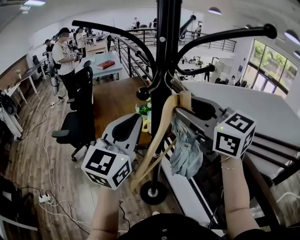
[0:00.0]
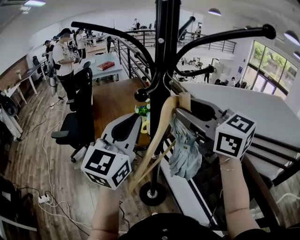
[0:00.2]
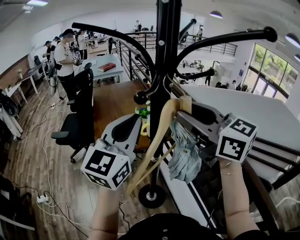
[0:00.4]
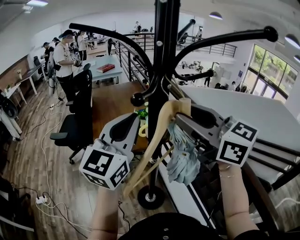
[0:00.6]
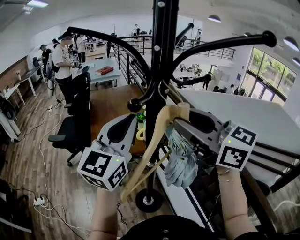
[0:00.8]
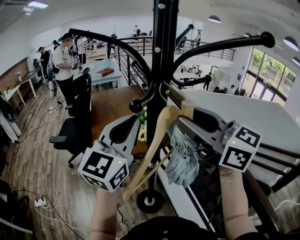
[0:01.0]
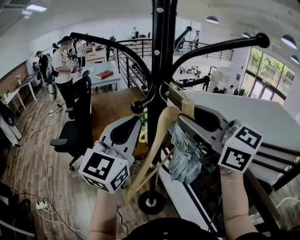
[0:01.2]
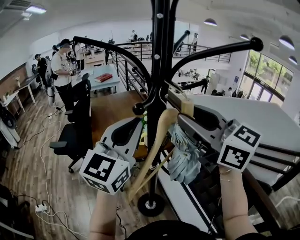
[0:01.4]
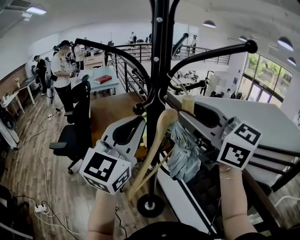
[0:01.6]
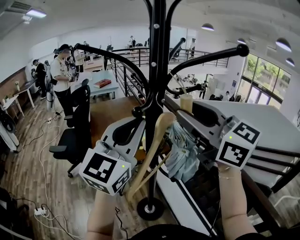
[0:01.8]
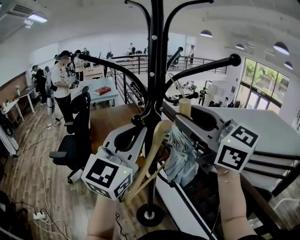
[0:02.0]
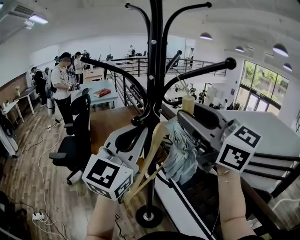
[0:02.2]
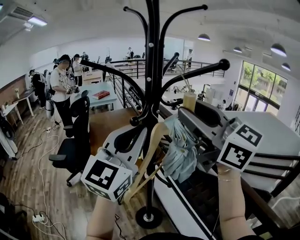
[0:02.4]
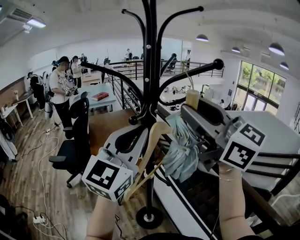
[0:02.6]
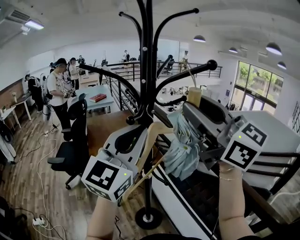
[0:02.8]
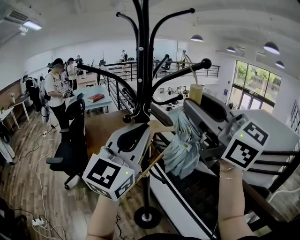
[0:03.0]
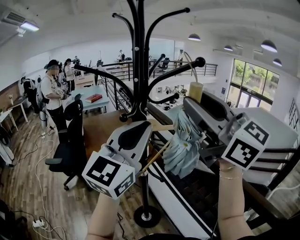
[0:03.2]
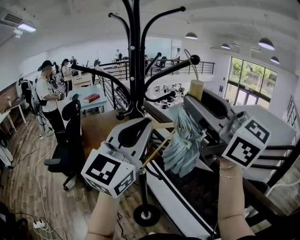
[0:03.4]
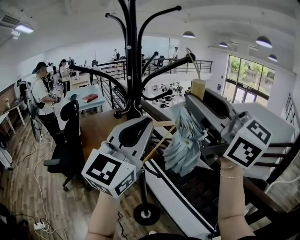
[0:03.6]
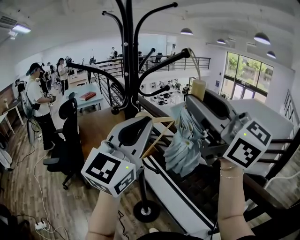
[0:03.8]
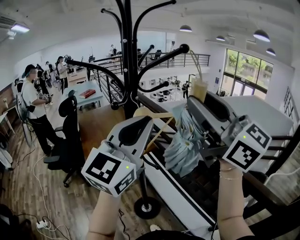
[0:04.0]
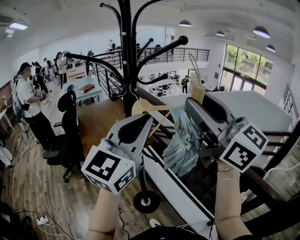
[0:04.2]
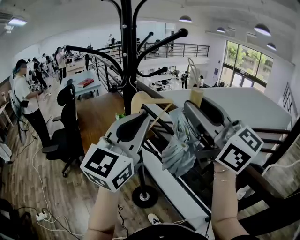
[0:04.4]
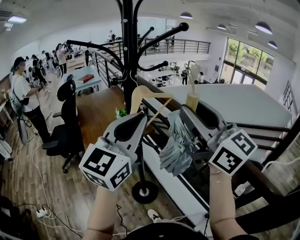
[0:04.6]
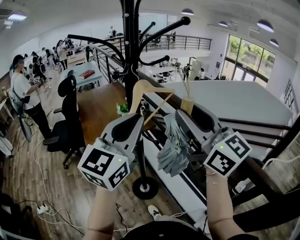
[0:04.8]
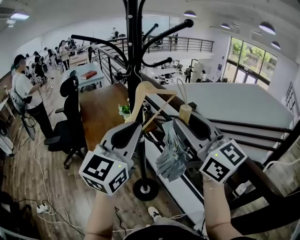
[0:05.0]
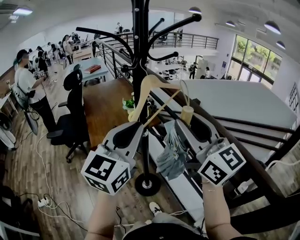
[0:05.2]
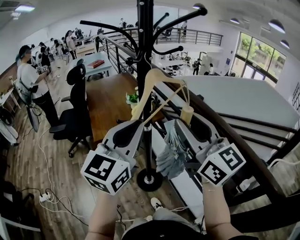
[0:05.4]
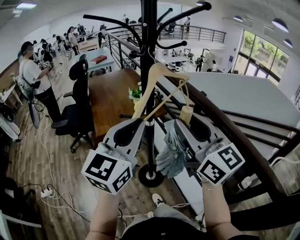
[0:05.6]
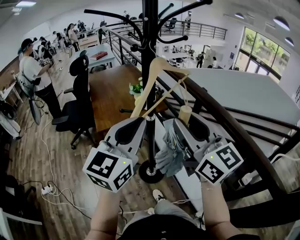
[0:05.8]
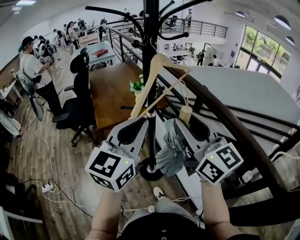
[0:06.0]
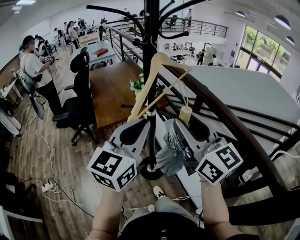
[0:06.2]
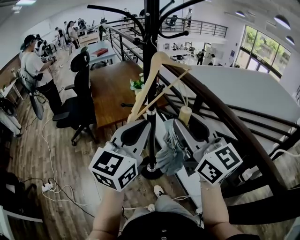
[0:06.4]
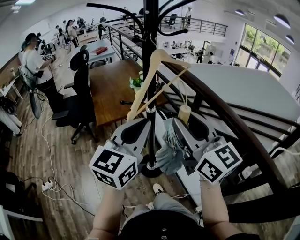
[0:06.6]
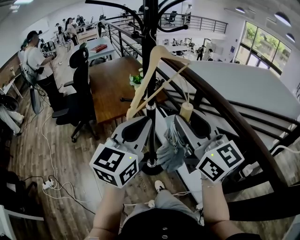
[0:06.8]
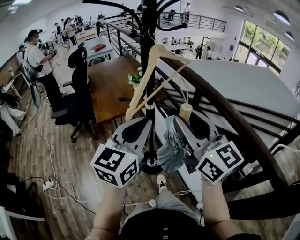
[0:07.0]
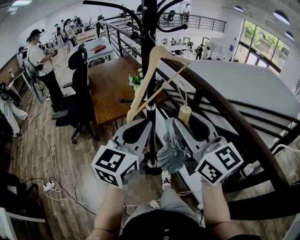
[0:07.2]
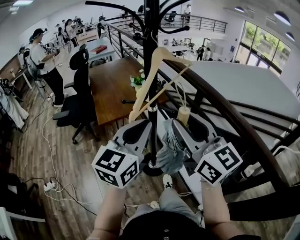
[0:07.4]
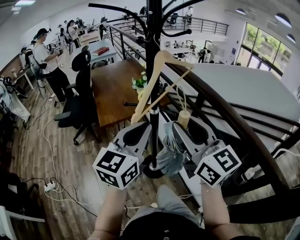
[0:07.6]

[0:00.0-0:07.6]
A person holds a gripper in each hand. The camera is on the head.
0:00.0 to 0:01.6: The right gripper shifts about 5 cm upward; the left gripper moves approximately 5 cm.
0:01.6 to 0:03.0: The left gripper travels backward by some 5 cm. The right gripper heads upward and backward, covering approximately 10 cm.
0:03.0 to 0:04.6: The right gripper moves downward and backward, roughly 10 cm; the left gripper shifts some 10 cm backward and downward.
0:04.6 to 0:06.0: The left gripper moves downward, approximately 10 cm. The right gripper moves downward and to the left, roughly 15 cm.
0:06.0 to 0:07.6: The grippers make only small movements.

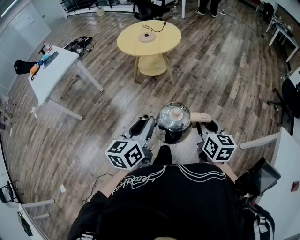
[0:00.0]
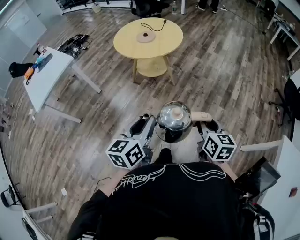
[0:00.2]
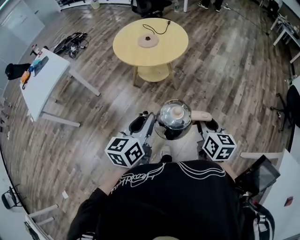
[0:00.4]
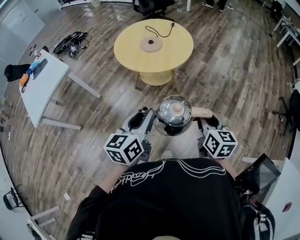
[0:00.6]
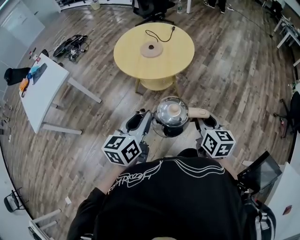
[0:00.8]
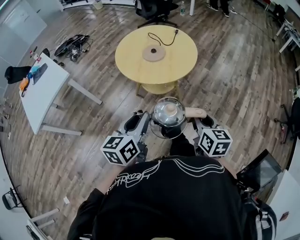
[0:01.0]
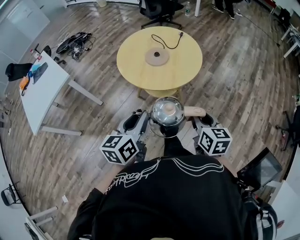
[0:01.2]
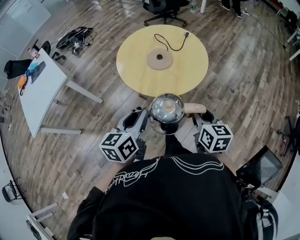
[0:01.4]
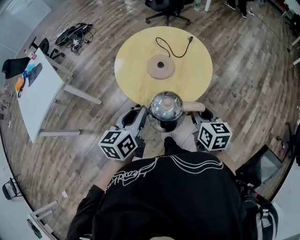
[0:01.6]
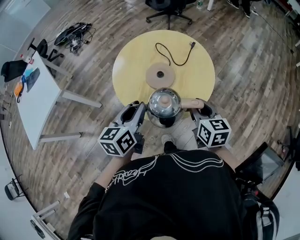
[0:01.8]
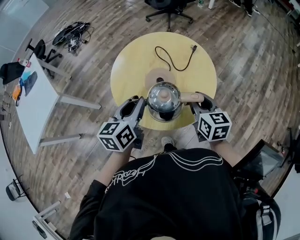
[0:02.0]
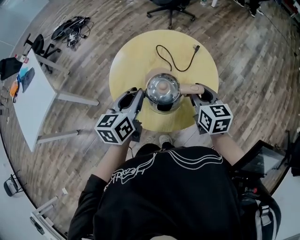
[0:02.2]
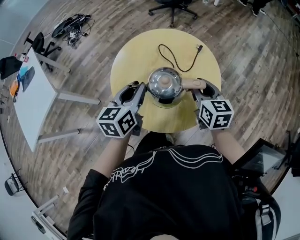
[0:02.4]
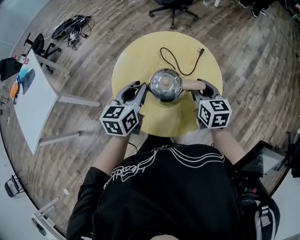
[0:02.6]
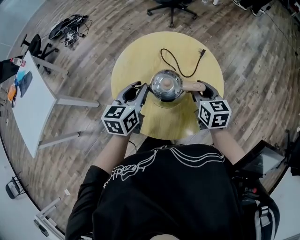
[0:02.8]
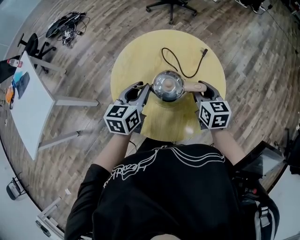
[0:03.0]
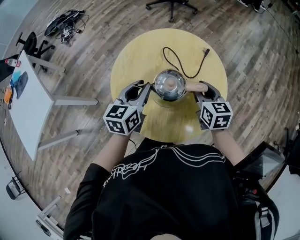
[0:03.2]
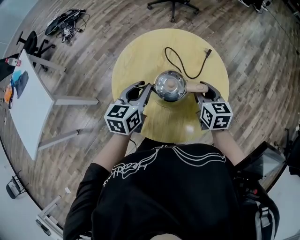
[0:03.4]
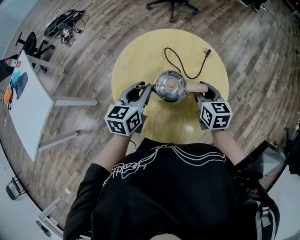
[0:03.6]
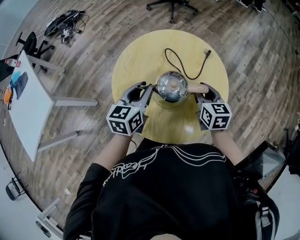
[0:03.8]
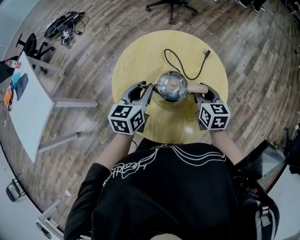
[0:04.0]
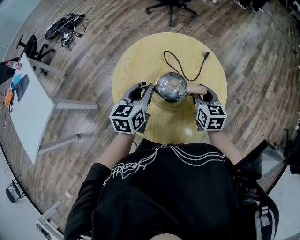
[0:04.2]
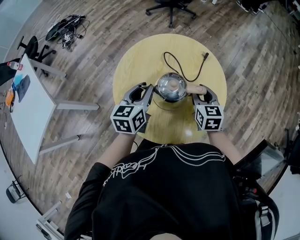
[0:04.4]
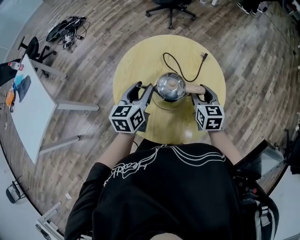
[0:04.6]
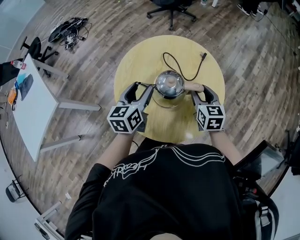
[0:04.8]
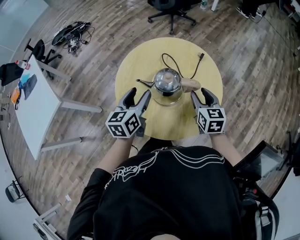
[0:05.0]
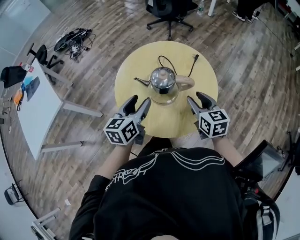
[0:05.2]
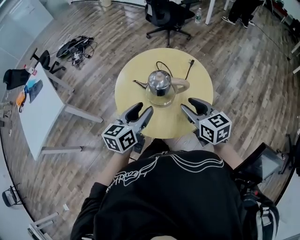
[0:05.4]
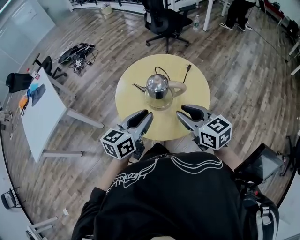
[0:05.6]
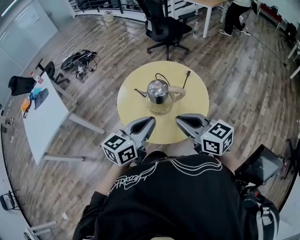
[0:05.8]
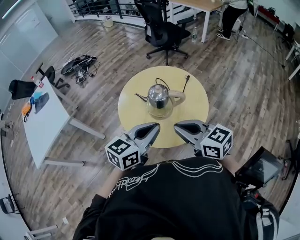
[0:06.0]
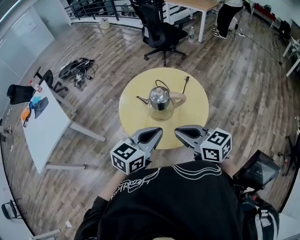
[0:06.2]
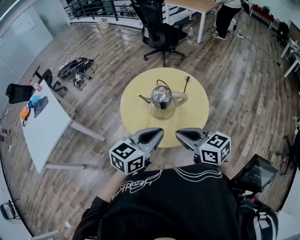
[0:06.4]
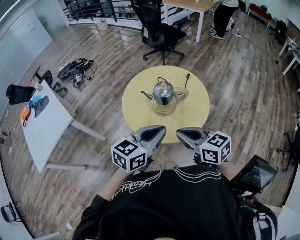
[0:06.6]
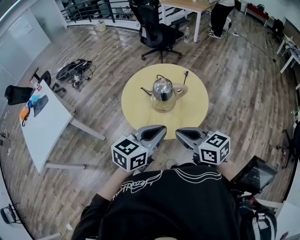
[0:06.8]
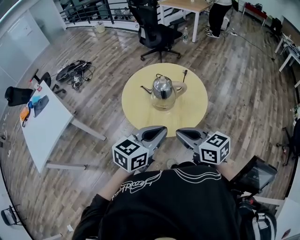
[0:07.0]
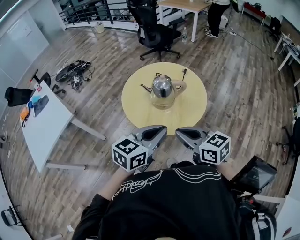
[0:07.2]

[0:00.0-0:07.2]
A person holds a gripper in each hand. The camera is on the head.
0:00.0 to 0:01.4: The pair of grippers is taken forward, about 50 cm.
0:01.4 to 0:02.8: Both grippers move forward, about 35 cm.
0:02.8 to 0:04.4: The grippers make only small movements.
0:04.4 to 0:05.8: The grippers both shift backward and upward by some 25 cm. The right gripper changes its angle by some 40 degrees, and closes its fingers; the left gripper turns by about 20 degrees, and opens and closes again.
0:05.8 to 0:07.2: Both grippers move backward, about 10 cm.

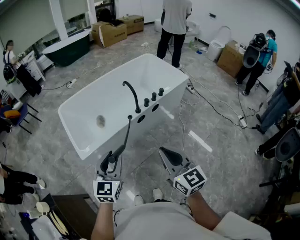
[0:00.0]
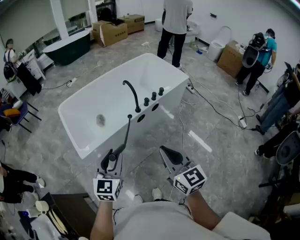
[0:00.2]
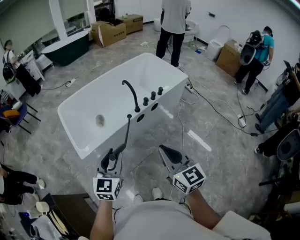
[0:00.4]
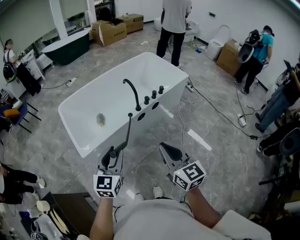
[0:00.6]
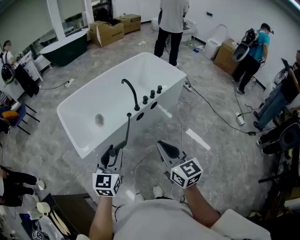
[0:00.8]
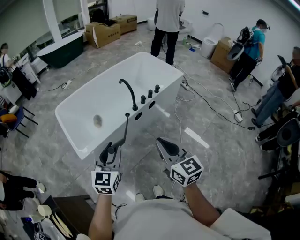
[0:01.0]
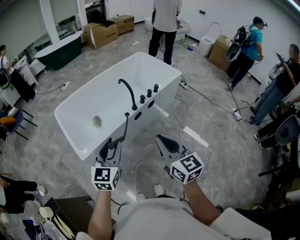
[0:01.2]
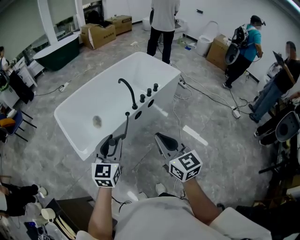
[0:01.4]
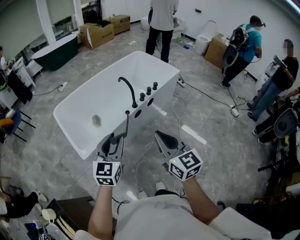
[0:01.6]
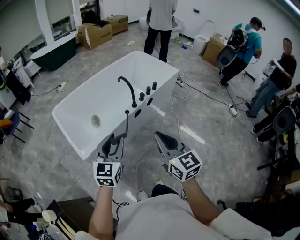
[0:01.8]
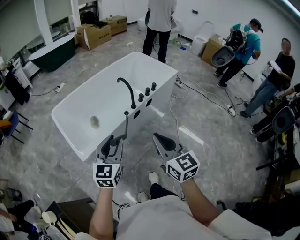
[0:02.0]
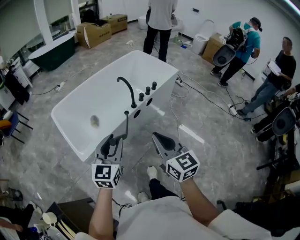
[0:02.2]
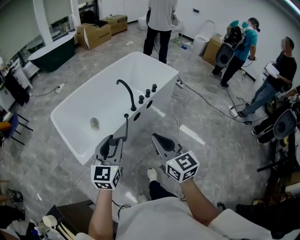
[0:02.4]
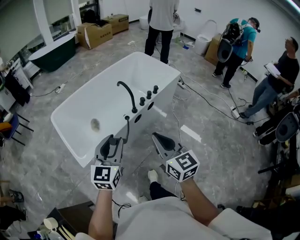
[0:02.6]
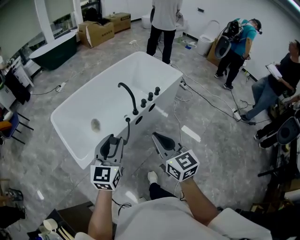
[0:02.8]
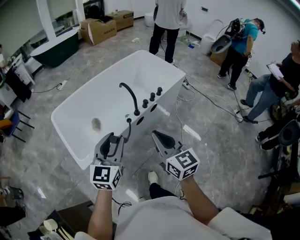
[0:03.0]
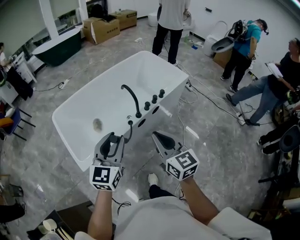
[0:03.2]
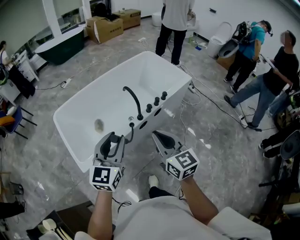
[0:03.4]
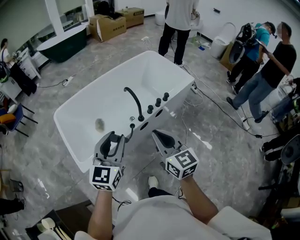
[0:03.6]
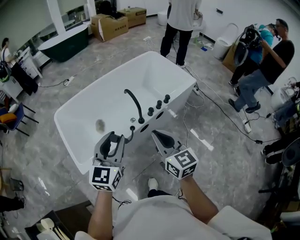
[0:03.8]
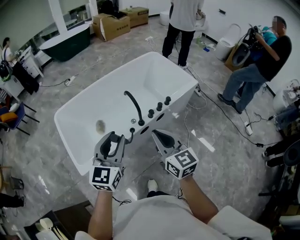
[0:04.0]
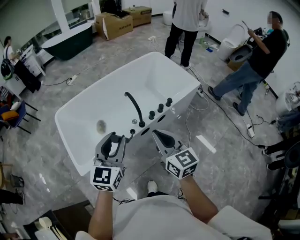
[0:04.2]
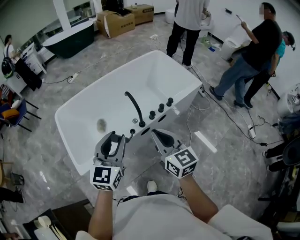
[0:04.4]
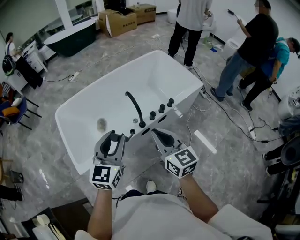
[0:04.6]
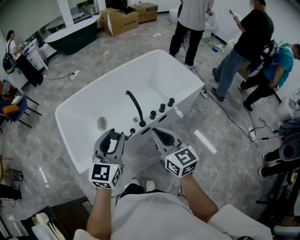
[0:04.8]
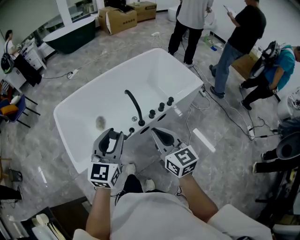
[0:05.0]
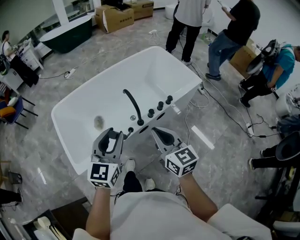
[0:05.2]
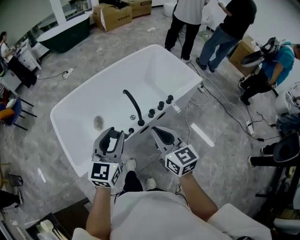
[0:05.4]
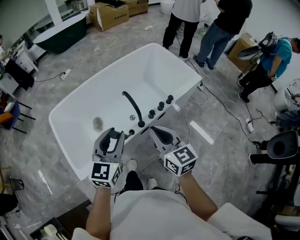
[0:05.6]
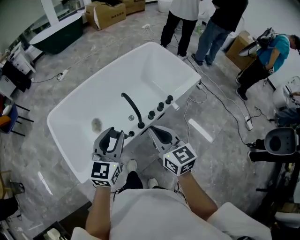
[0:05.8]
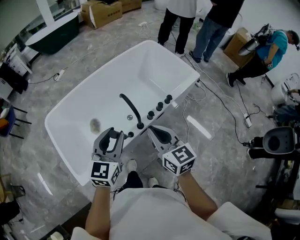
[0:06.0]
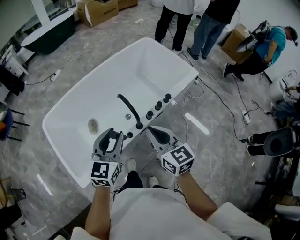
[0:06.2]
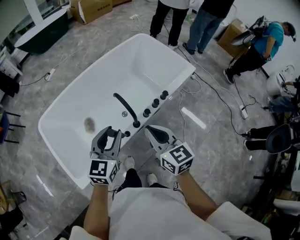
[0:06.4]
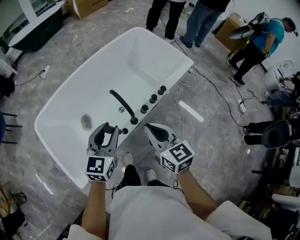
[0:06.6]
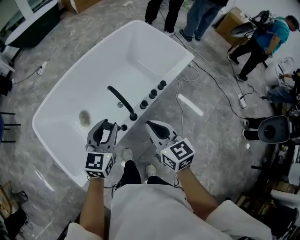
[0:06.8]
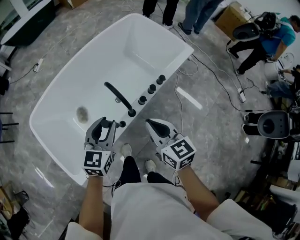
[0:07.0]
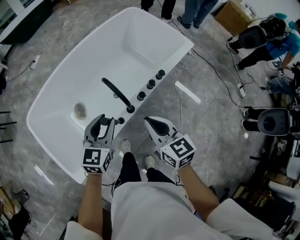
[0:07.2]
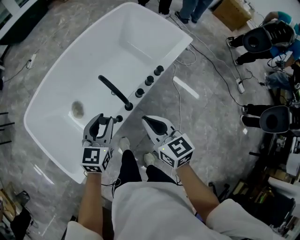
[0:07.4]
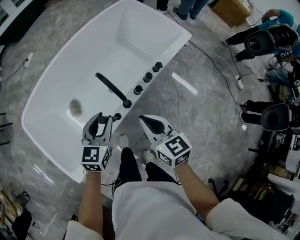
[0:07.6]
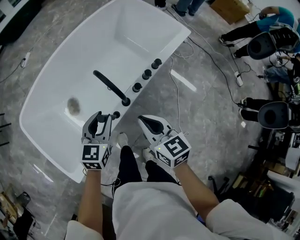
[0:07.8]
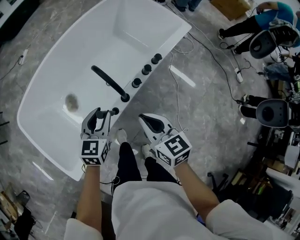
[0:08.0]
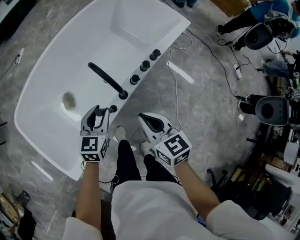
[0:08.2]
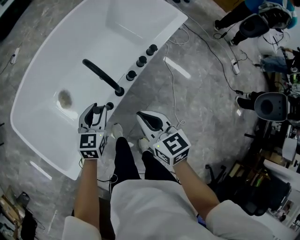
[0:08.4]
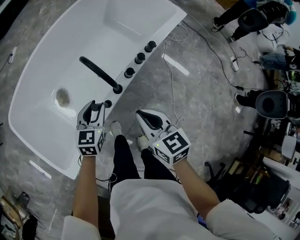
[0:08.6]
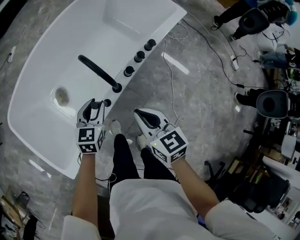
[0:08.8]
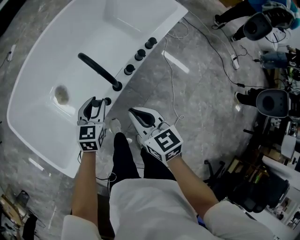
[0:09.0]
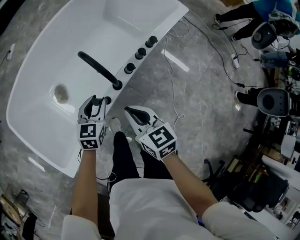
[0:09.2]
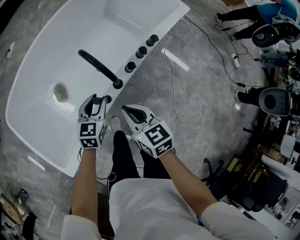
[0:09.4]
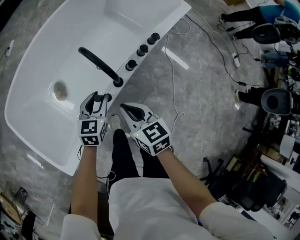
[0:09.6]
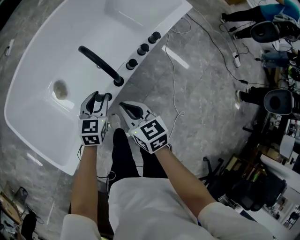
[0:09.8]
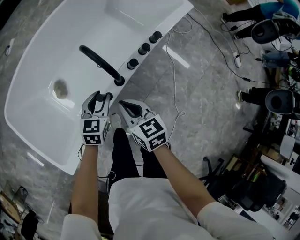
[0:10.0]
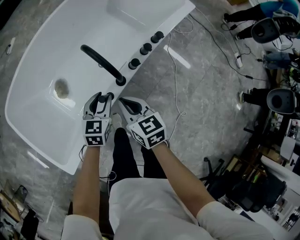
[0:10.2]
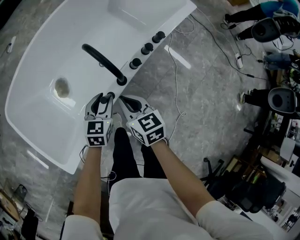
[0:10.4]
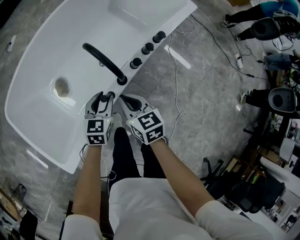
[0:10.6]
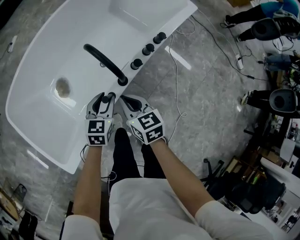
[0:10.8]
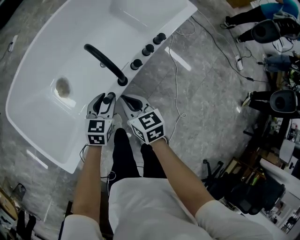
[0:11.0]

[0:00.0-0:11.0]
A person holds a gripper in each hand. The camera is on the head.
0:00.0 to 0:01.6: The right gripper shifts roughly 5 cm to the left.
0:01.6 to 0:03.2: Both grippers move forward, about 15 cm.
0:03.2 to 0:04.8: The right gripper is displaced forward by some 15 cm. Meanwhile the left gripper travels forward and to the right by about 15 cm.
0:04.8 to 0:06.2: The left gripper shifts about 15 cm forward and downward. The right gripper is displaced forward by about 10 cm.
0:06.2 to 0:07.8: Both grippers travel together downward, some 15 cm.
0:07.8 to 0:09.4: The grippers both shift downward by some 10 cm.
0:09.4 to 0:11.0: The right gripper heads downward, covering some 5 cm.